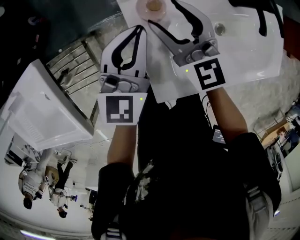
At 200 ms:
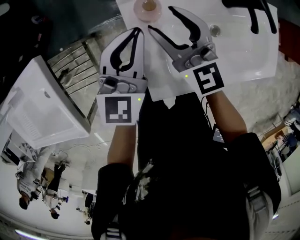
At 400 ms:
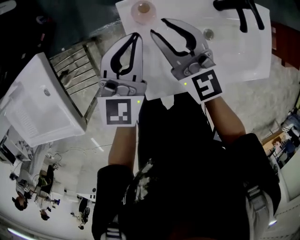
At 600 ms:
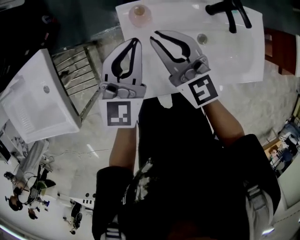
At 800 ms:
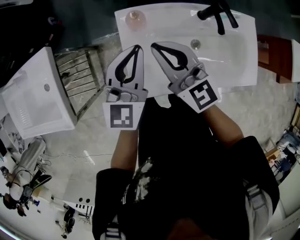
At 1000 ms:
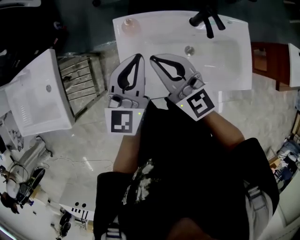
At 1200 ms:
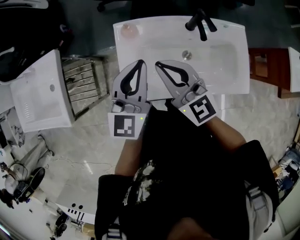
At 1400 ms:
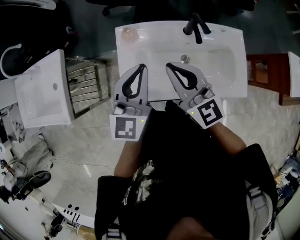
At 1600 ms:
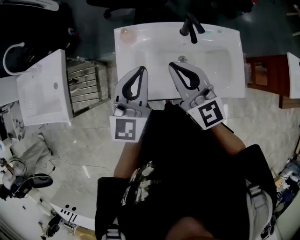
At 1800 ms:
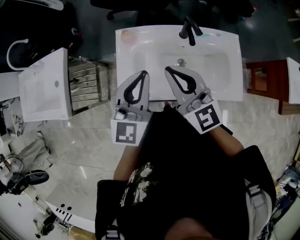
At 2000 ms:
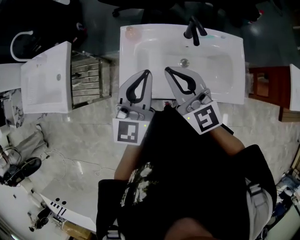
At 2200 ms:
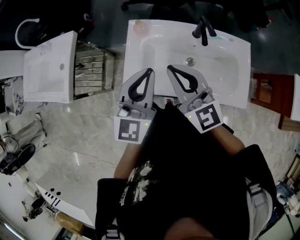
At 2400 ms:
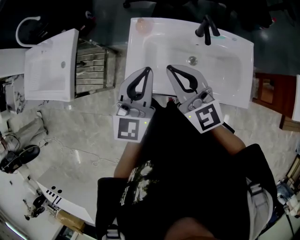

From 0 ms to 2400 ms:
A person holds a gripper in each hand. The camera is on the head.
From 0 ms to 1200 ms: The right gripper goes about 25 cm backward, upward and to the right, and closes its fingers, while the left gripper is displaced upward, backward and to the right by roughly 25 cm.
From 1200 ms to 2400 ms: The two grippers go approximately 10 cm backward.

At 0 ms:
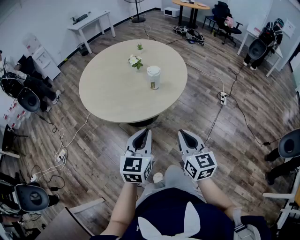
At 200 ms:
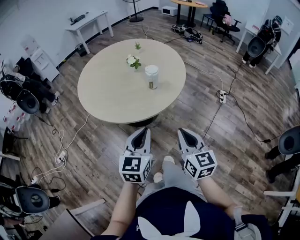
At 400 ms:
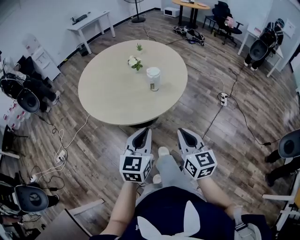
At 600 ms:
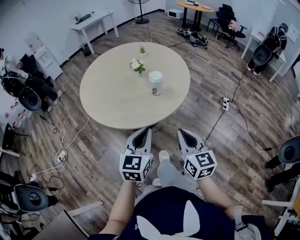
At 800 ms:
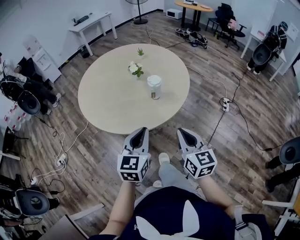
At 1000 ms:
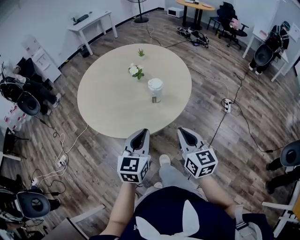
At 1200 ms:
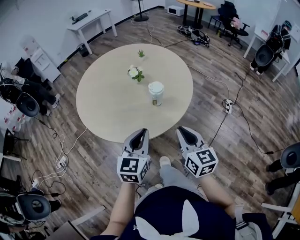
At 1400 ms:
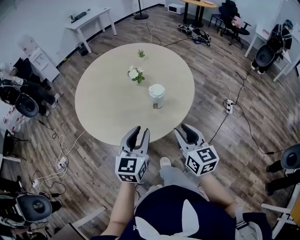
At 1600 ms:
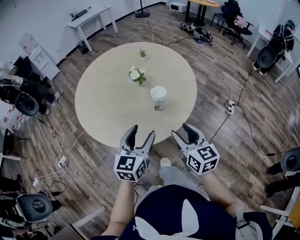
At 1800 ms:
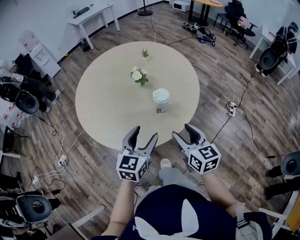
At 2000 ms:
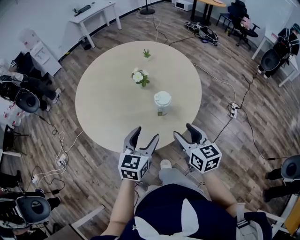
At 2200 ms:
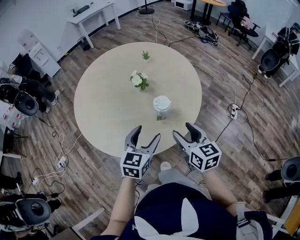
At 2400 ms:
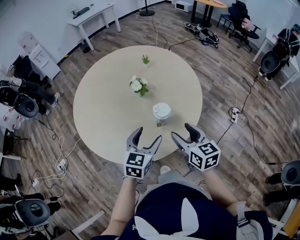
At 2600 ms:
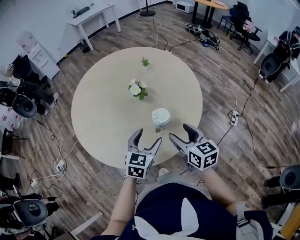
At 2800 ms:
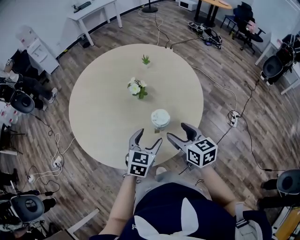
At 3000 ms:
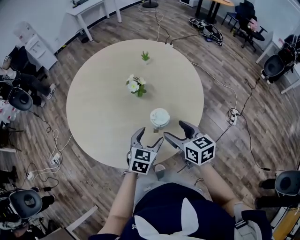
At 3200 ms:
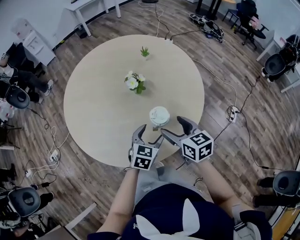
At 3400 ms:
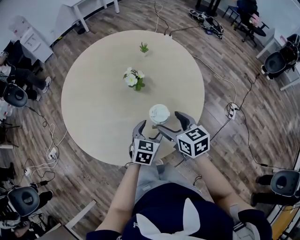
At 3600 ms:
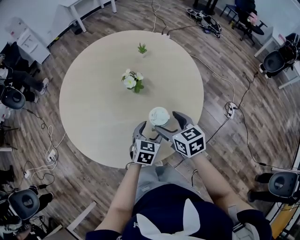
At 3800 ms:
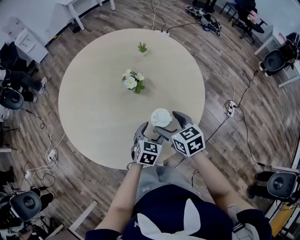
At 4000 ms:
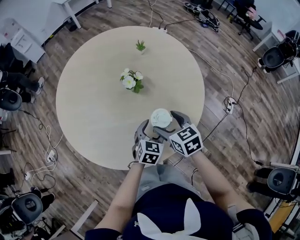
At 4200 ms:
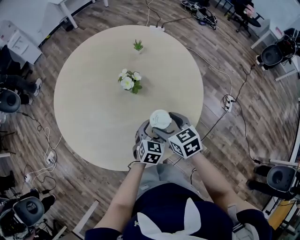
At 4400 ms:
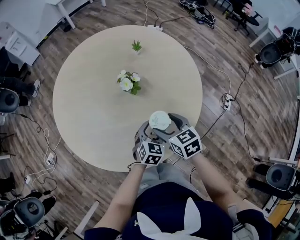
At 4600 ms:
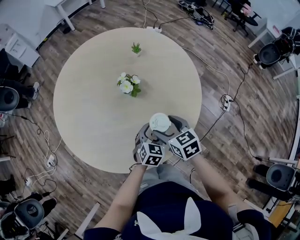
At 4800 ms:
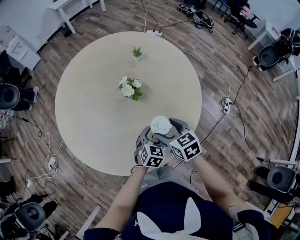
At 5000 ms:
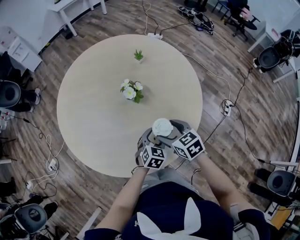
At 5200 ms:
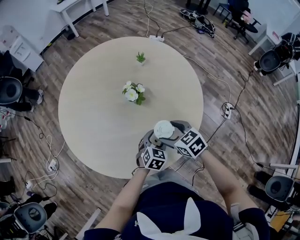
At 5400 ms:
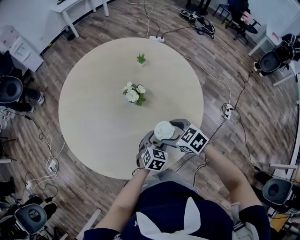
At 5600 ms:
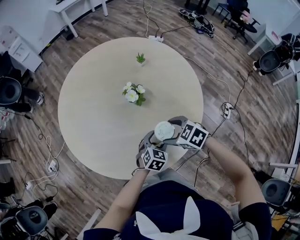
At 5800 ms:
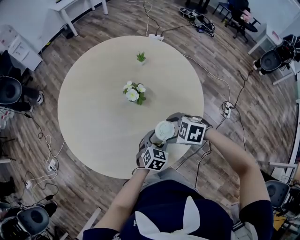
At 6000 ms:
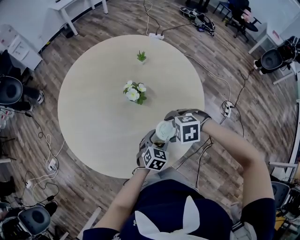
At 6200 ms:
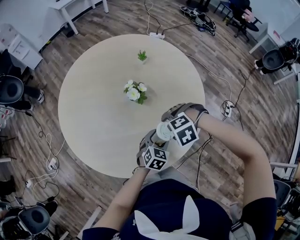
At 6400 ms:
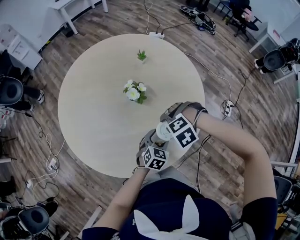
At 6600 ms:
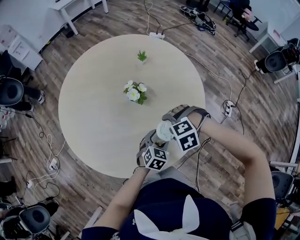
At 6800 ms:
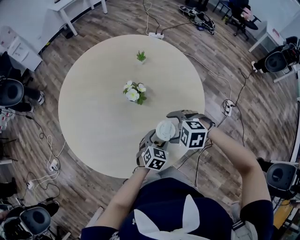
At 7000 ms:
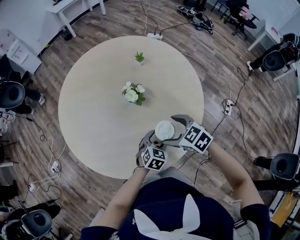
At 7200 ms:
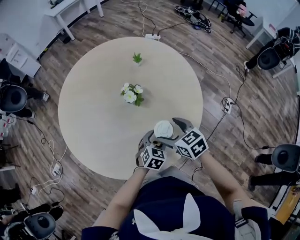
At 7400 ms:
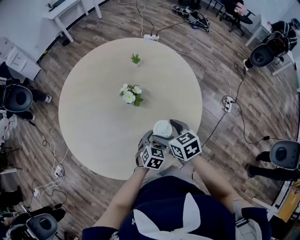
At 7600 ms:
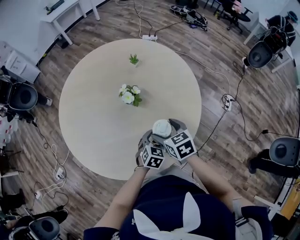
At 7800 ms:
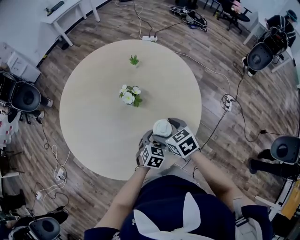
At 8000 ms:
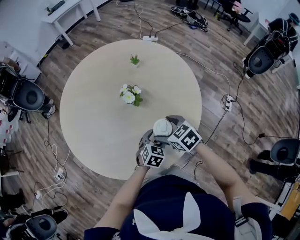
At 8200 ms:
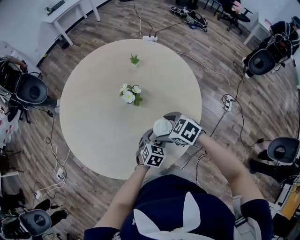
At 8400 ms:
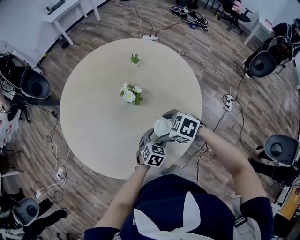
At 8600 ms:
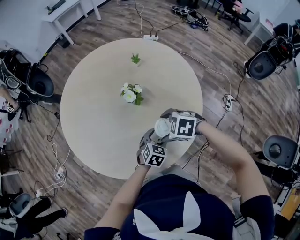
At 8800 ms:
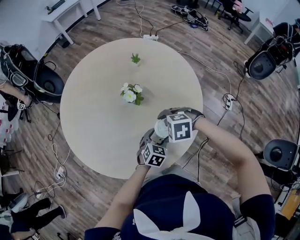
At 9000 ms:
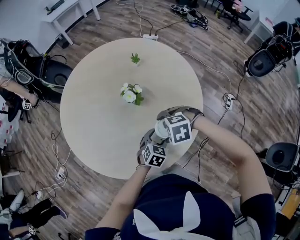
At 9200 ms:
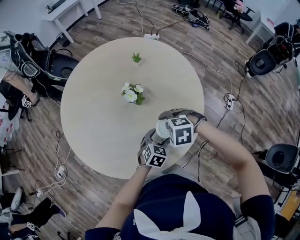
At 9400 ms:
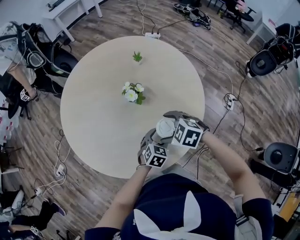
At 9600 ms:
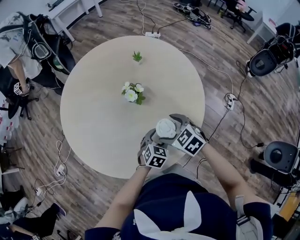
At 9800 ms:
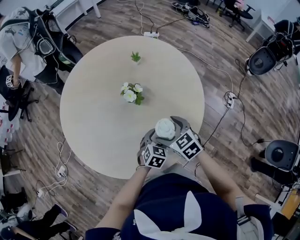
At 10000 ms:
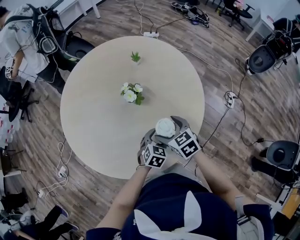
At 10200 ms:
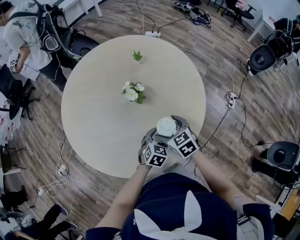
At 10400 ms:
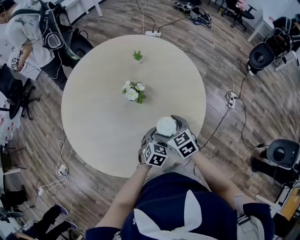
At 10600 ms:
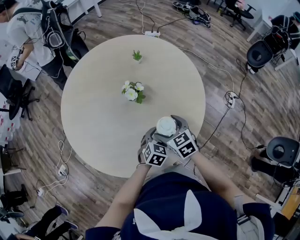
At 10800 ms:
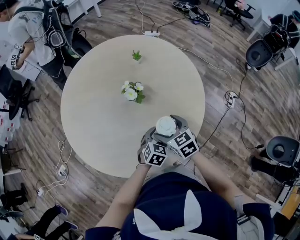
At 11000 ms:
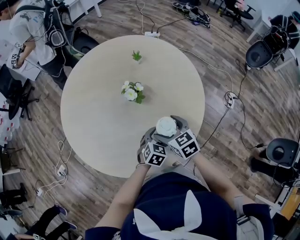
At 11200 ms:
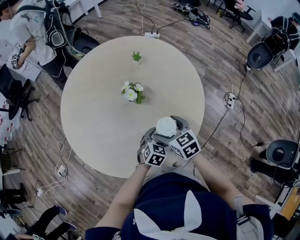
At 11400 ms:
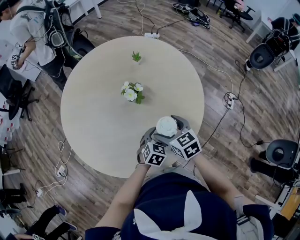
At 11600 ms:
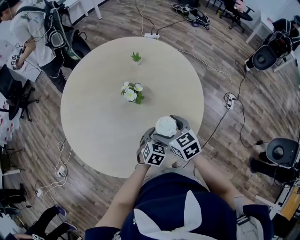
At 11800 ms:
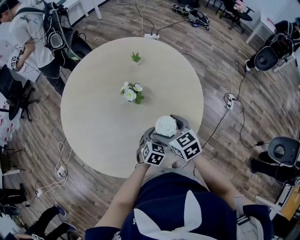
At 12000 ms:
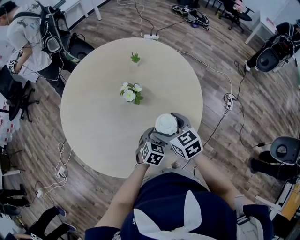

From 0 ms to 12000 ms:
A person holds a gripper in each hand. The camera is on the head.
From 0 ms to 1600 ms: Both grippers move forward, approximately 20 cm. The left gripper opens its fingers, while the right gripper opens its fingers.
From 1600 ms to 3000 ms: The right gripper shifts about 15 cm forward. The left gripper is displaced forward and downward by approximately 20 cm, and changes its angle by approximately 20 degrees.
From 3000 ms to 4400 ms: The right gripper heads forward and downward, covering some 10 cm; the left gripper travels downward and forward by some 10 cm.
From 4400 ms to 6000 ms: The right gripper points its fingers roughly 30 degrees further downward.
From 6000 ms to 7600 ms: The right gripper tilts its fingers some 30 degrees upward.
From 7600 ms to 9000 ms: The right gripper rotates around the line of its fingers by approximately 60 degrees, counterclockwise from behind.
From 9000 ms to 10400 ms: The right gripper points its fingers roughly 30 degrees further upward.
From 10400 ms to 12000 ms: The right gripper travels upward by some 5 cm.

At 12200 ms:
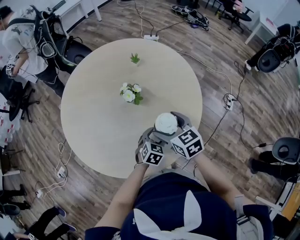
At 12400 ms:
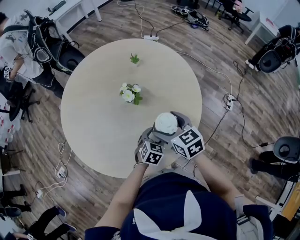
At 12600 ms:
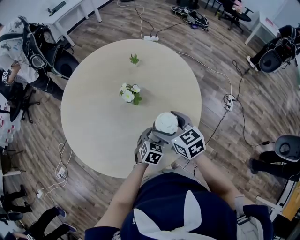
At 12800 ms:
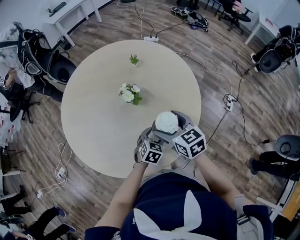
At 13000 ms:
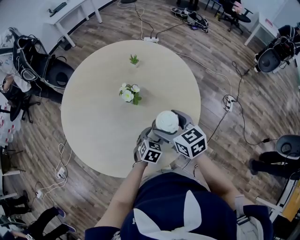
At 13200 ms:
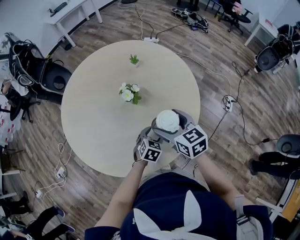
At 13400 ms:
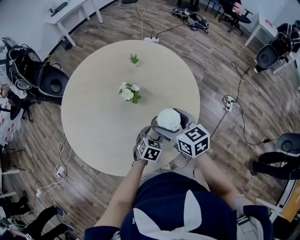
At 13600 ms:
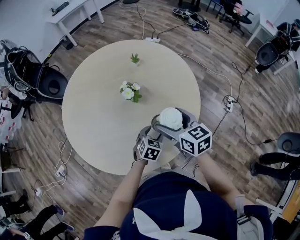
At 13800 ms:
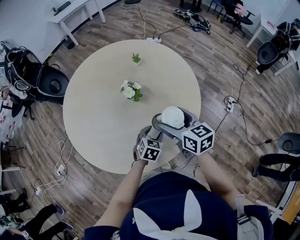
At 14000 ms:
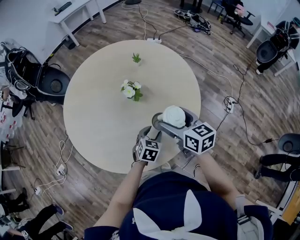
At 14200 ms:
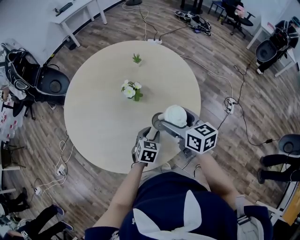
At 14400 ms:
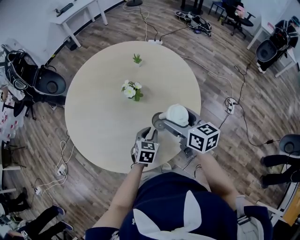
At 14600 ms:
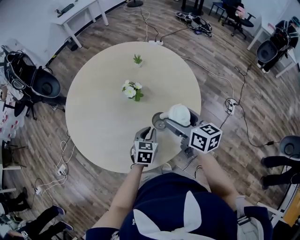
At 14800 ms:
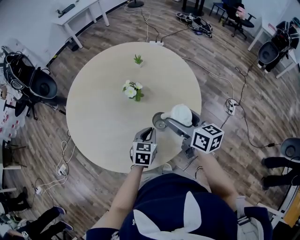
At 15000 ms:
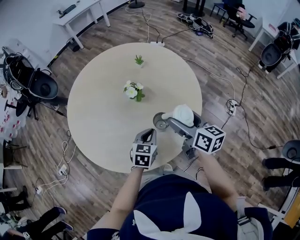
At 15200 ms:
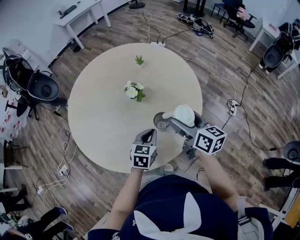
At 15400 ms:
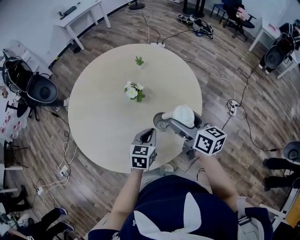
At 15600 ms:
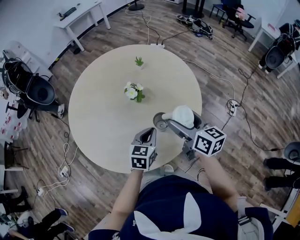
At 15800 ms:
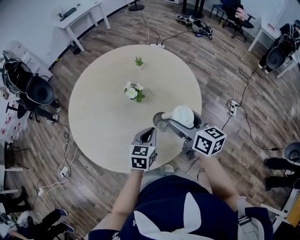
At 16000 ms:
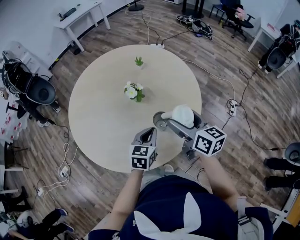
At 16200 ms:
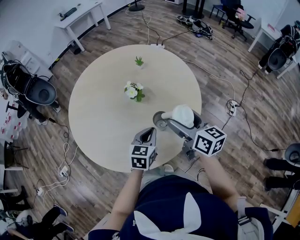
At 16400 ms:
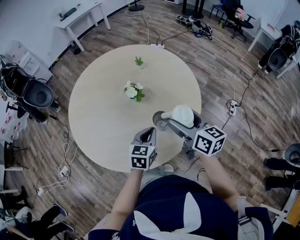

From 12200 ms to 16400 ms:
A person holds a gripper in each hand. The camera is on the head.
From 12200 ms to 13600 ms: The right gripper shifts by roughly 5 cm.
From 13600 ms to 15000 ms: The right gripper shifts by some 5 cm, and rotates about 20 degrees. Meanwhile the left gripper shifts roughly 5 cm upward, and closes up.
From 15000 ms to 16400 ms: The grippers stay close to where they were, moving slightly.

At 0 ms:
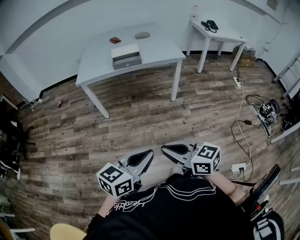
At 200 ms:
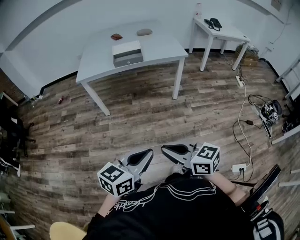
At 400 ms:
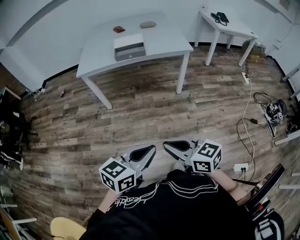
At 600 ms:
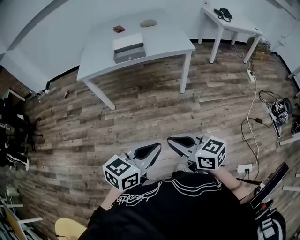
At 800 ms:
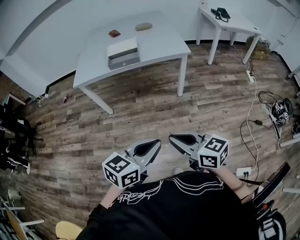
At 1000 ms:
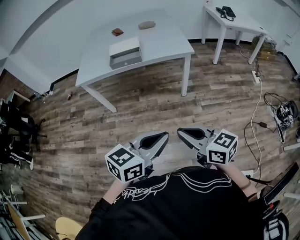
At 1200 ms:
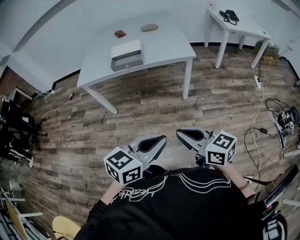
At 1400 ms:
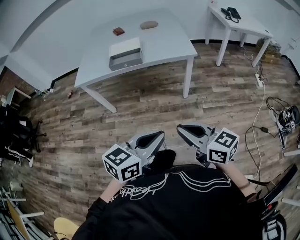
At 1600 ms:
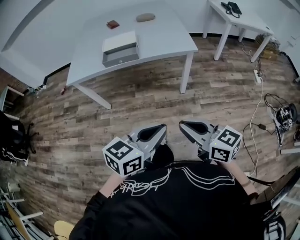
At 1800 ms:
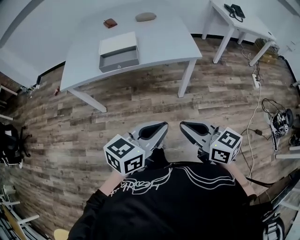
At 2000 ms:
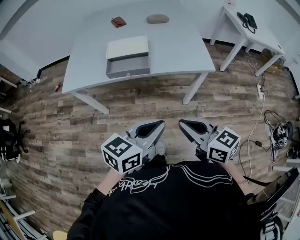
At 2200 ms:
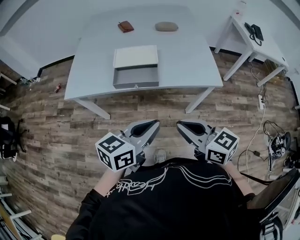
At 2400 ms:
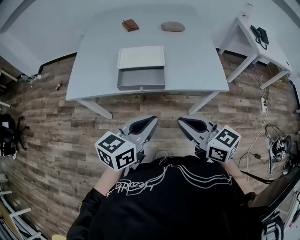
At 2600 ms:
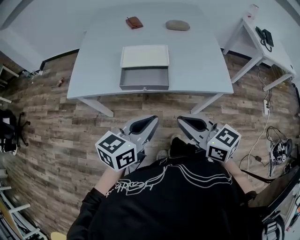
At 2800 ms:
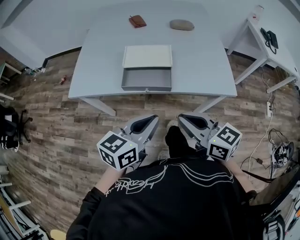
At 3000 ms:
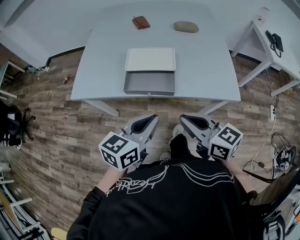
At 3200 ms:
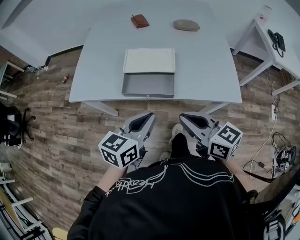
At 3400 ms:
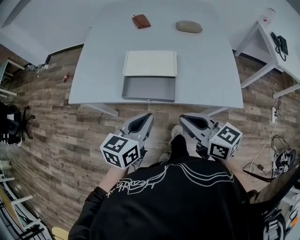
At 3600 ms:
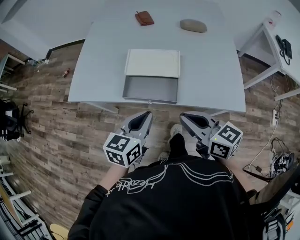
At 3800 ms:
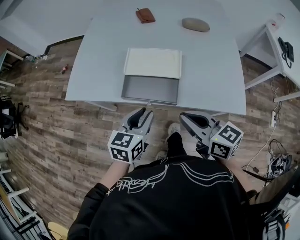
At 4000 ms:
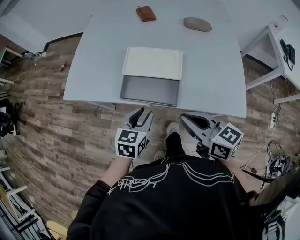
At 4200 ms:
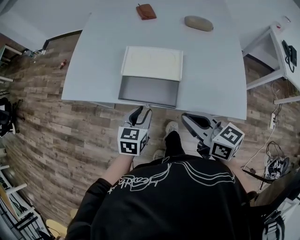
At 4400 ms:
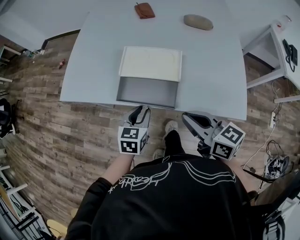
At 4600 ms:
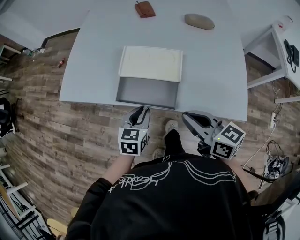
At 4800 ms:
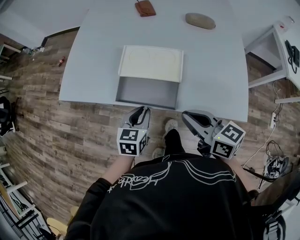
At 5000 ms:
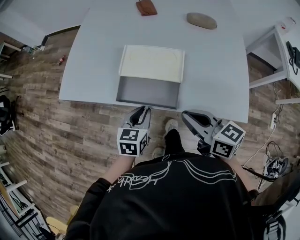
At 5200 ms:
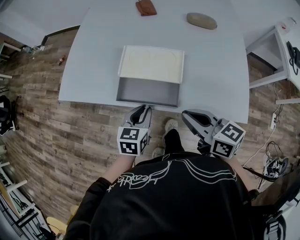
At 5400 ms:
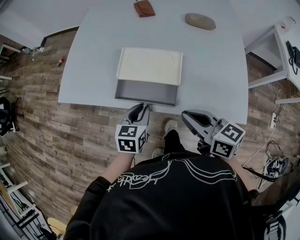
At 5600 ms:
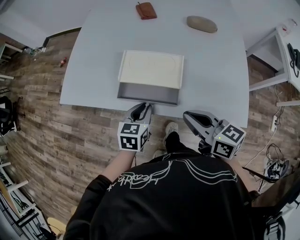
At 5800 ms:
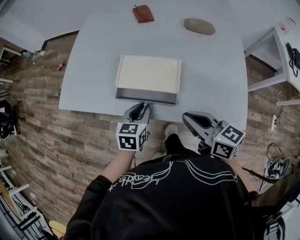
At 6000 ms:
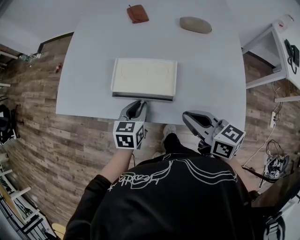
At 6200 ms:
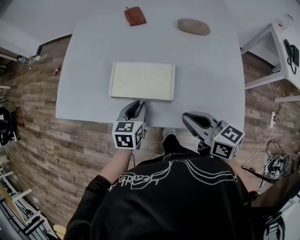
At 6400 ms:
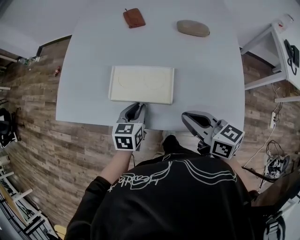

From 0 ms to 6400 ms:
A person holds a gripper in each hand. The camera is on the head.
From 0 ms to 1600 ms: Both grippers travel together forward and to the right, about 30 cm.
From 1600 ms to 3200 ms: The grippers both shift forward by roughly 35 cm. The left gripper turns by some 20 degrees.
From 3200 ms to 4800 ms: The left gripper moves downward and forward, some 20 cm, and changes its angle by approximately 20 degrees; the right gripper heads forward, covering roughly 10 cm.
From 4800 ms to 6400 ms: The grippers both shift forward by approximately 10 cm.
